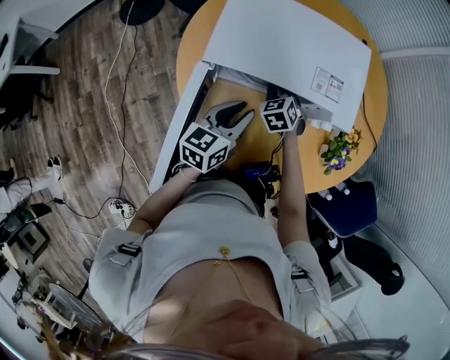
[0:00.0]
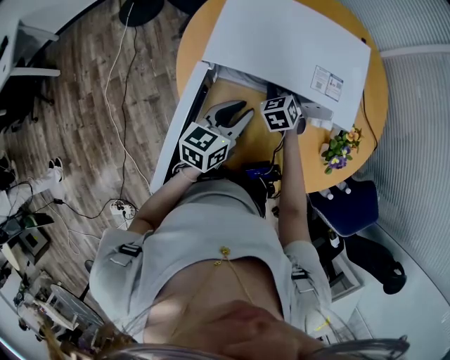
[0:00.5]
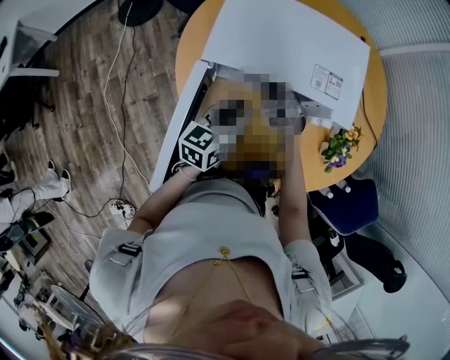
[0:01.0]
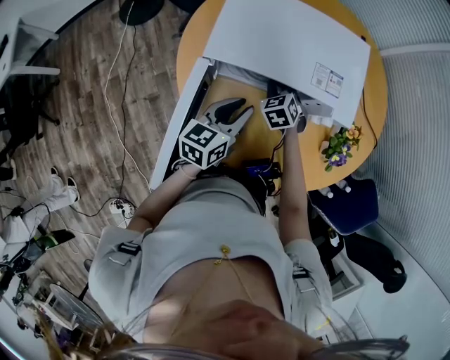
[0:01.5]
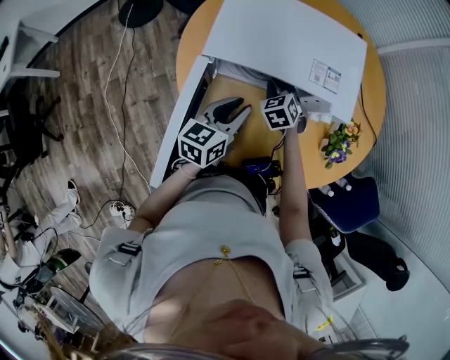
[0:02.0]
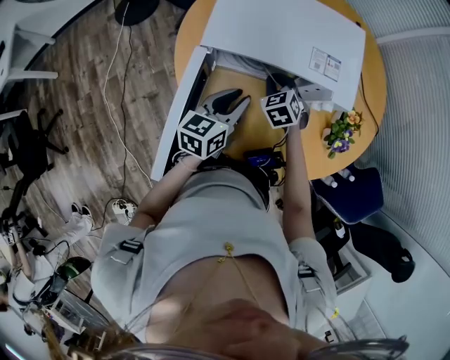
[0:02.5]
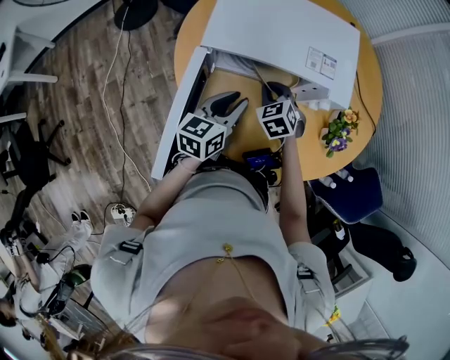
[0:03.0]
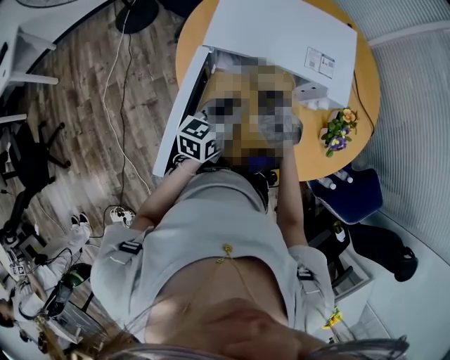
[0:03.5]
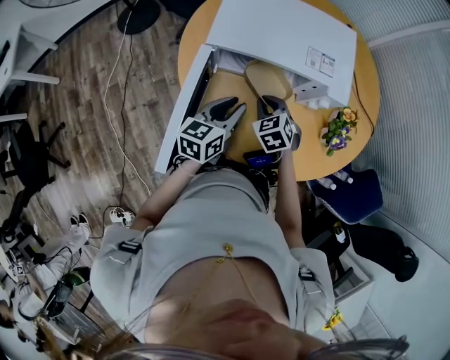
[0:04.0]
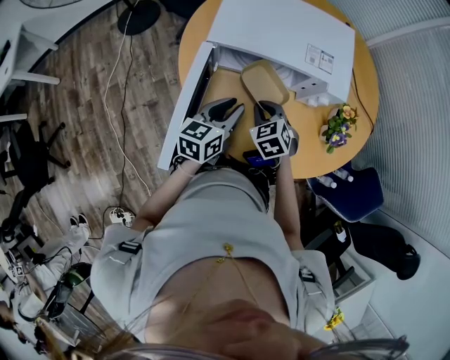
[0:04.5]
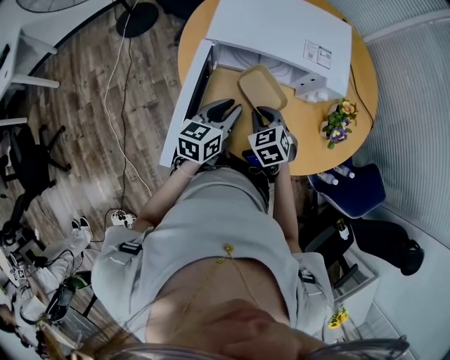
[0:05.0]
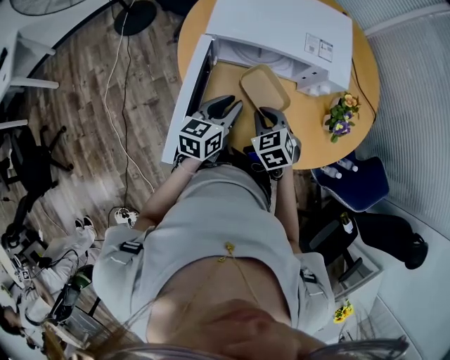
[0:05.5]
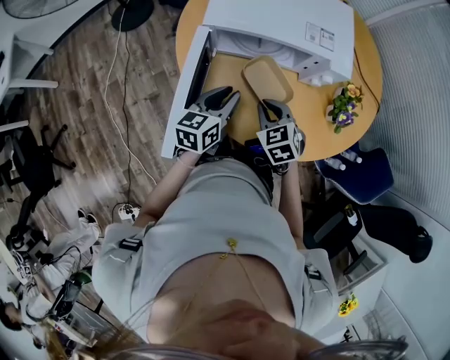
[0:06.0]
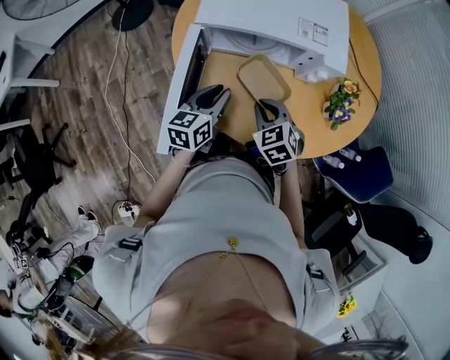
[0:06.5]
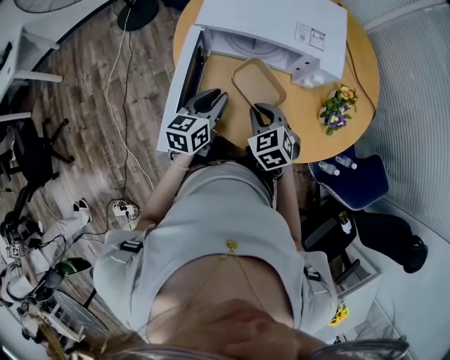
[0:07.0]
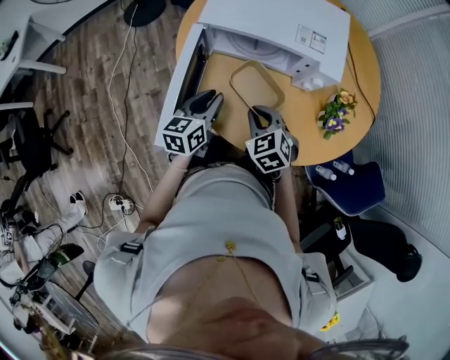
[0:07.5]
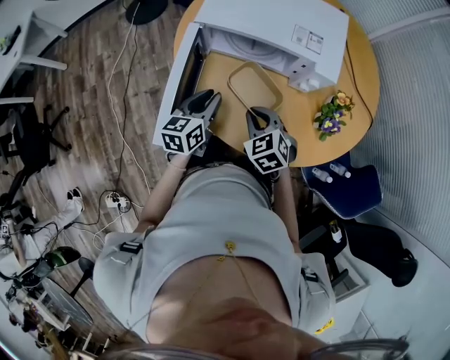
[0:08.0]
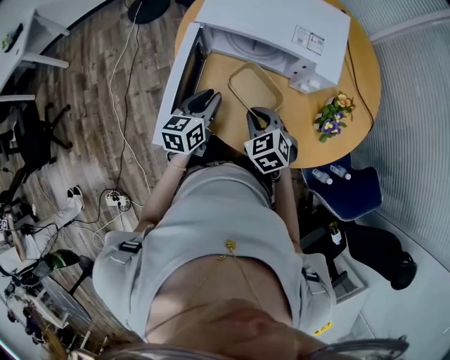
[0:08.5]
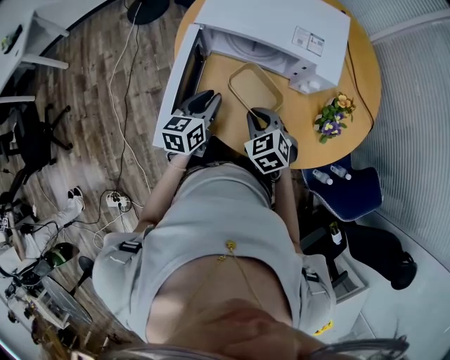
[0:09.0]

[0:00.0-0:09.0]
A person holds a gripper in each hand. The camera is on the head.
0:00.0 to 0:02.0: The grippers make only small movements.
0:02.0 to 0:04.5: The right gripper is displaced backward by roughly 15 cm, while the left gripper is displaced backward by approximately 5 cm.
0:04.5 to 0:07.0: The right gripper is displaced backward by some 5 cm.
0:07.0 to 0:09.0: The grippers make only small movements.

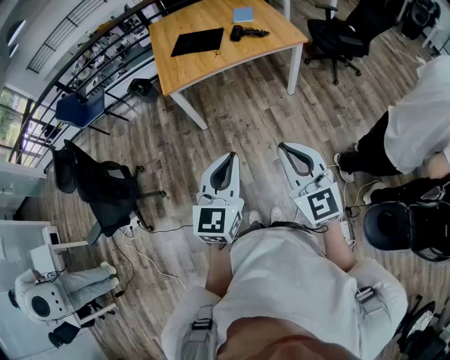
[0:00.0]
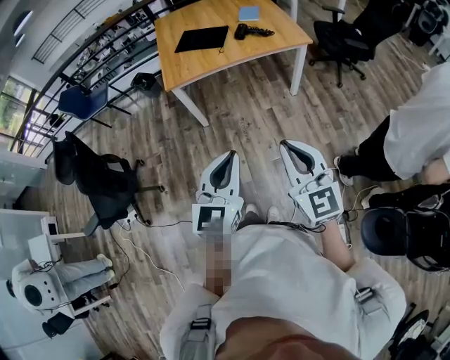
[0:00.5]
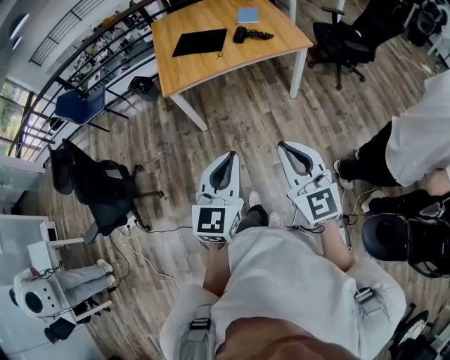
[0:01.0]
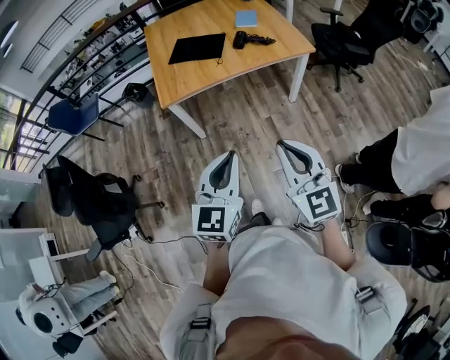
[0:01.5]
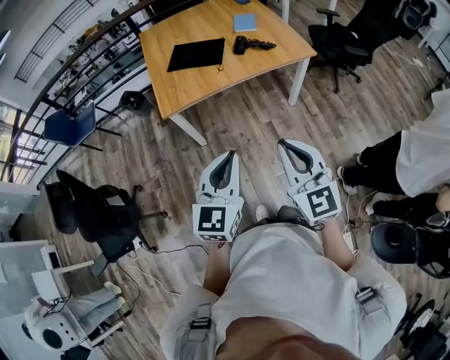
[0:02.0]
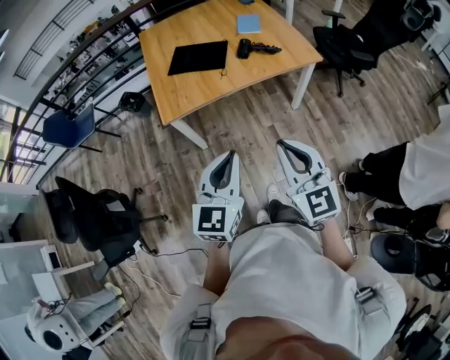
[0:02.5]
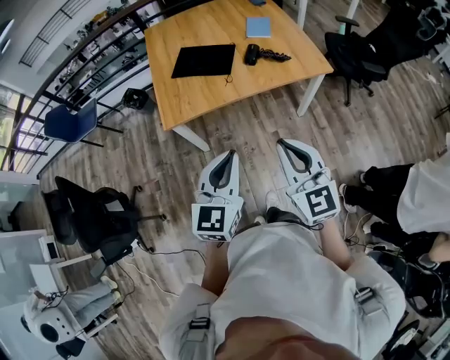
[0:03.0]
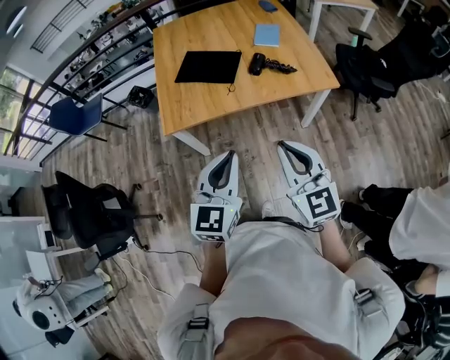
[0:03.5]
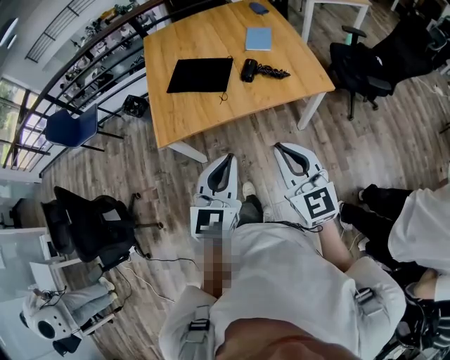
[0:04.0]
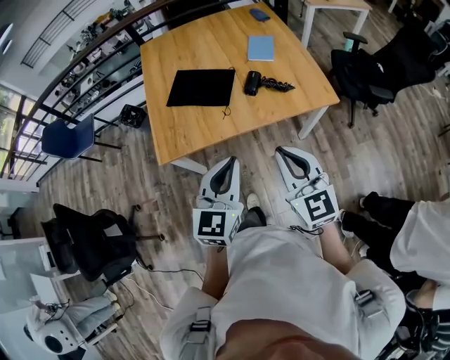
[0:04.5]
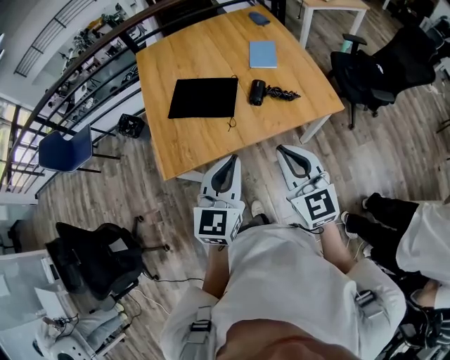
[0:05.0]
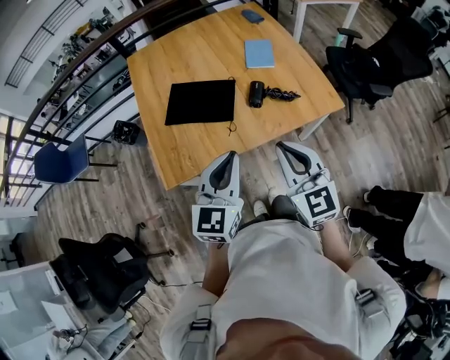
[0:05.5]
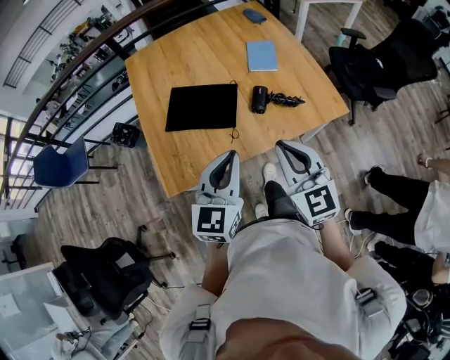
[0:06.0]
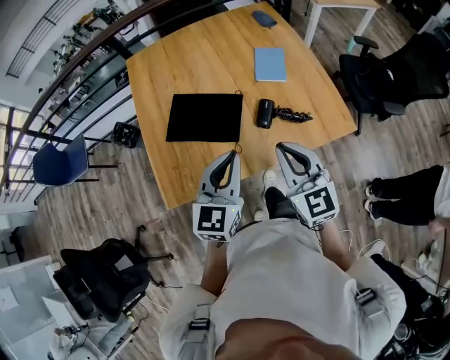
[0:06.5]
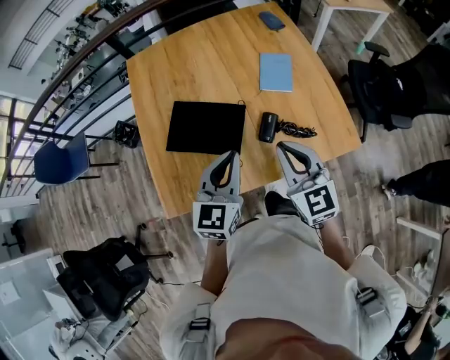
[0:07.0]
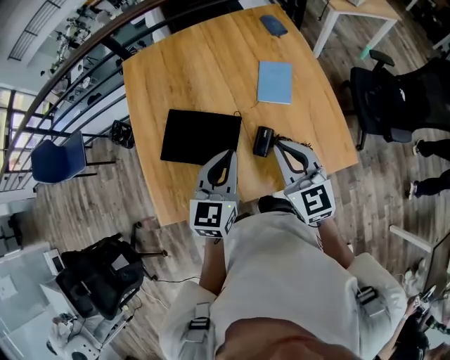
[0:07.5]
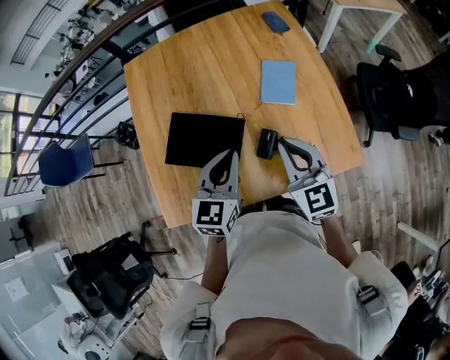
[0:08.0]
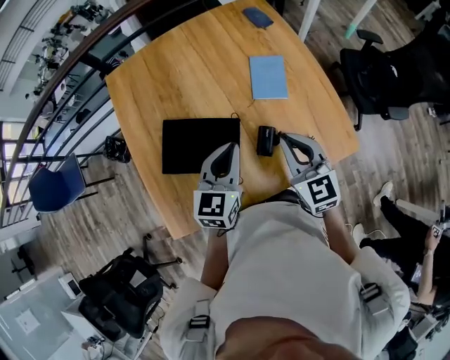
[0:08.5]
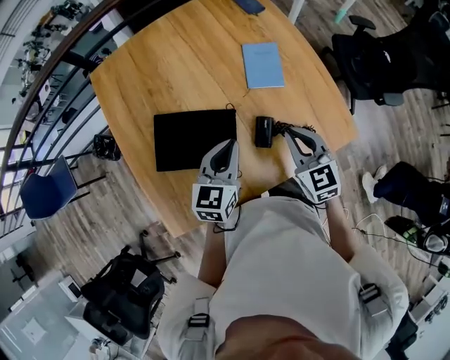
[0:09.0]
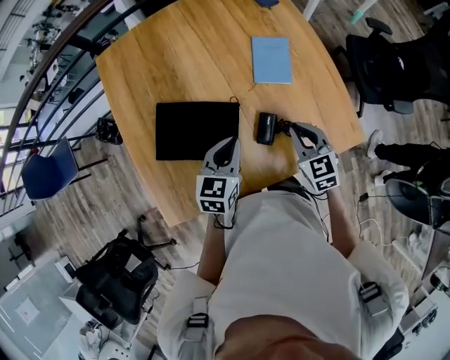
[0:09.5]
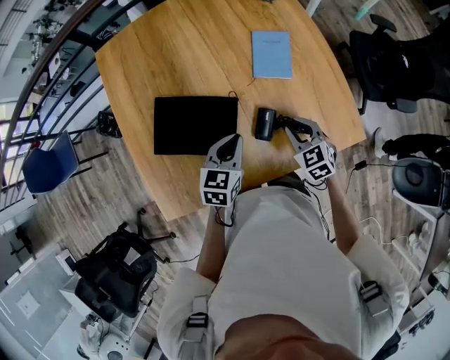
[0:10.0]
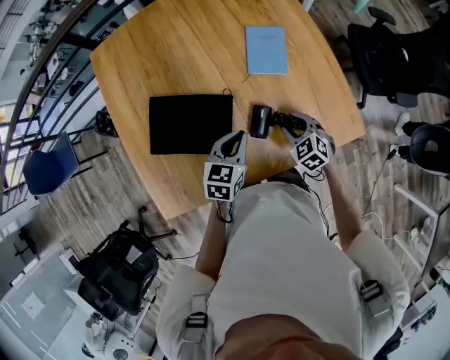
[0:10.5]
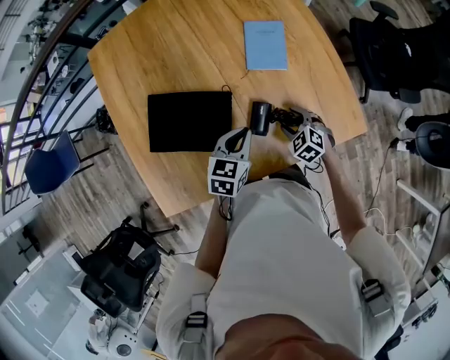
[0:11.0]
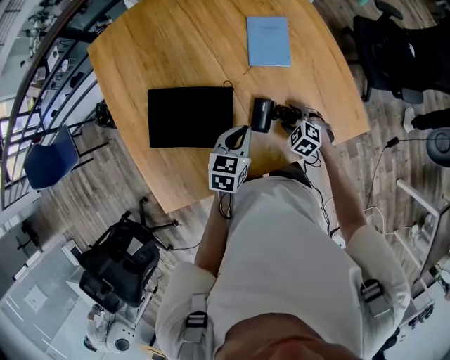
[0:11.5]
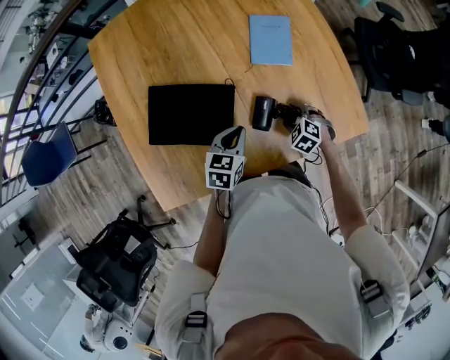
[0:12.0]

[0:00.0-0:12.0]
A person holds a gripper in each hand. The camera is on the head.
0:00.0 to 0:02.0: The grippers both shift forward by approximately 20 cm.
0:02.0 to 0:04.0: The two grippers go roughly 25 cm forward.
0:04.0 to 0:06.0: The two grippers go approximately 25 cm forward.
0:06.0 to 0:08.0: Both grippers travel together forward, about 25 cm.
0:08.0 to 0:10.0: The grippers both shift downward by some 15 cm. The right gripper swivels roughly 30 degrees.
0:10.0 to 0:12.0: The right gripper goes approximately 15 cm downward, rotates some 30 degrees, and opens up. Meanwhile the left gripper travels downward by approximately 5 cm.

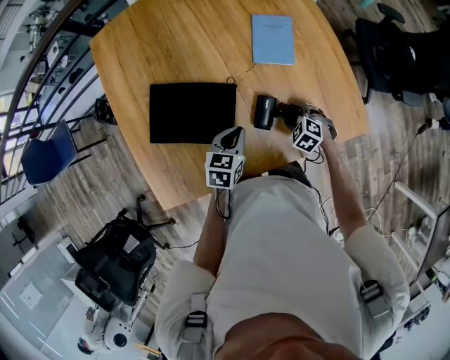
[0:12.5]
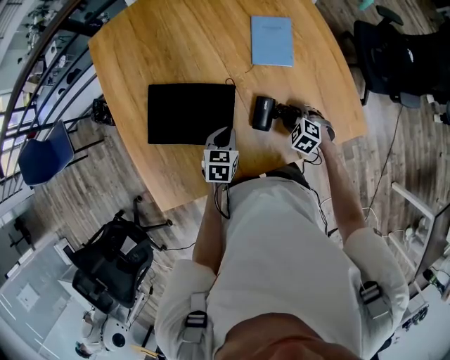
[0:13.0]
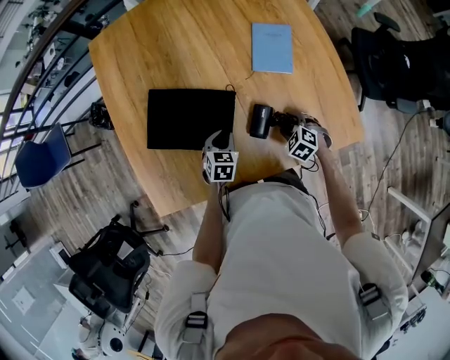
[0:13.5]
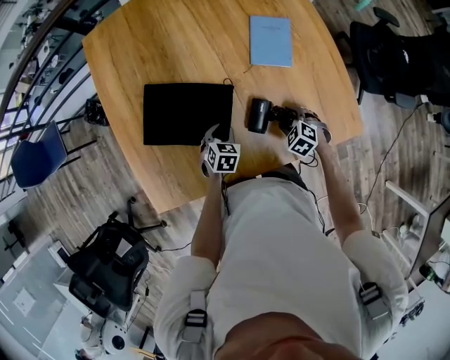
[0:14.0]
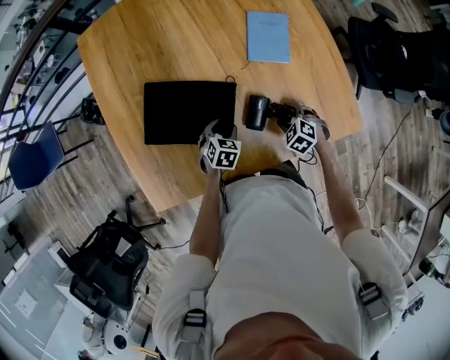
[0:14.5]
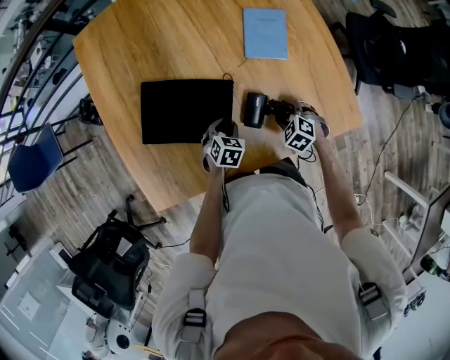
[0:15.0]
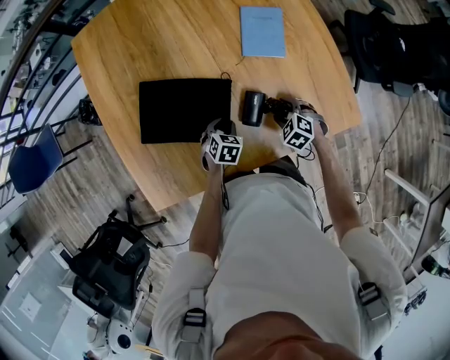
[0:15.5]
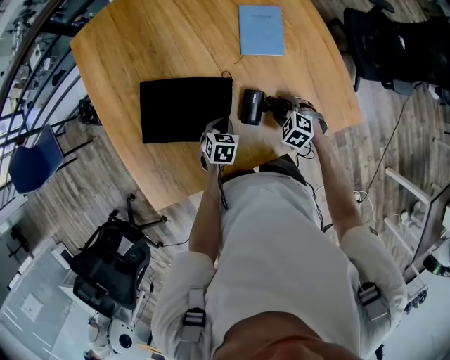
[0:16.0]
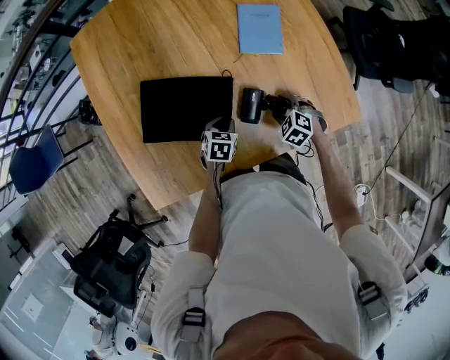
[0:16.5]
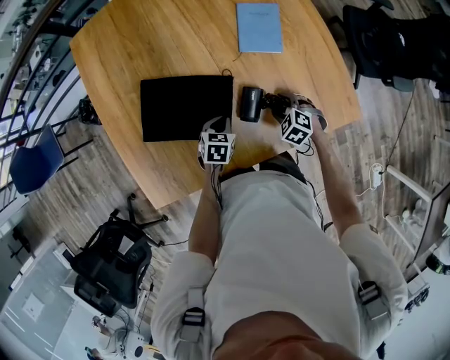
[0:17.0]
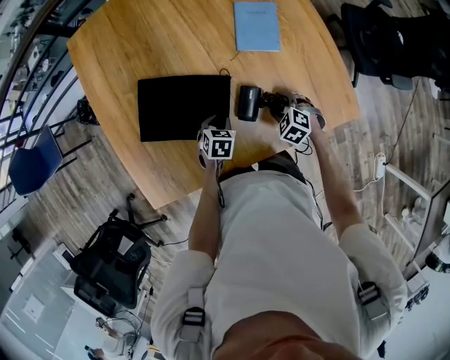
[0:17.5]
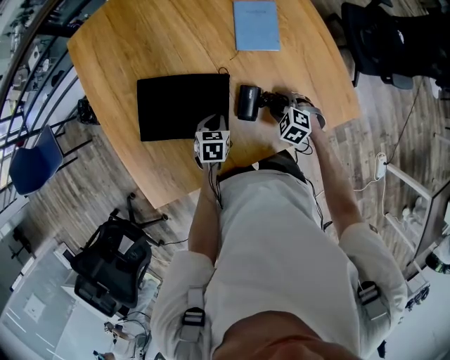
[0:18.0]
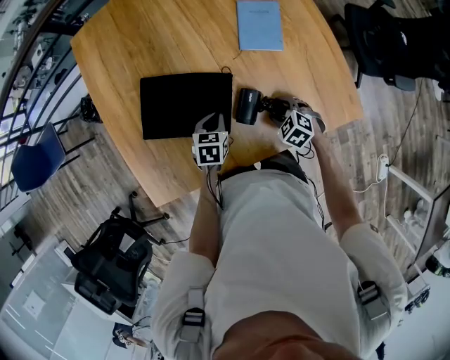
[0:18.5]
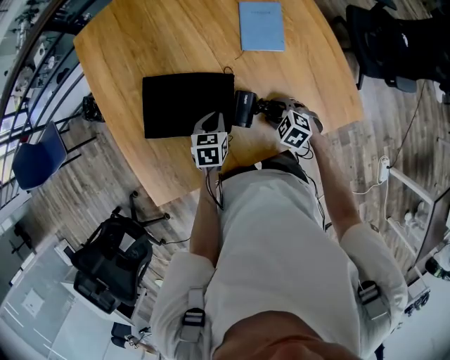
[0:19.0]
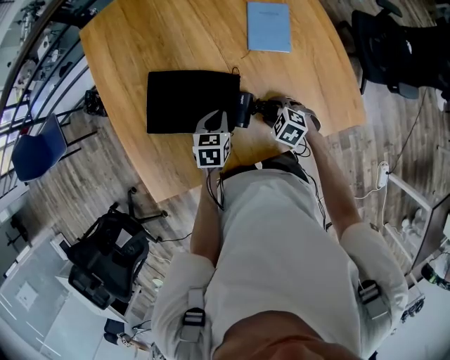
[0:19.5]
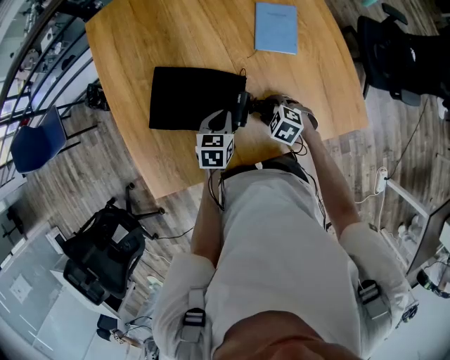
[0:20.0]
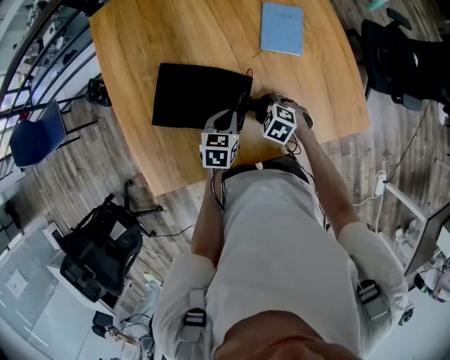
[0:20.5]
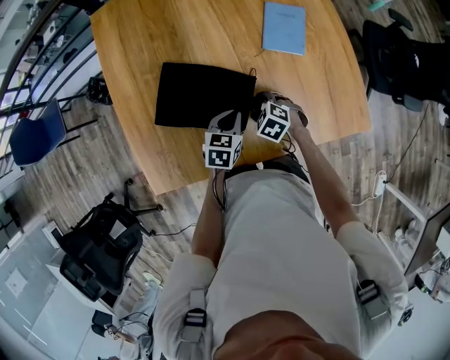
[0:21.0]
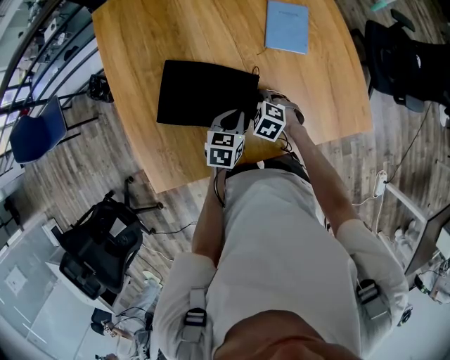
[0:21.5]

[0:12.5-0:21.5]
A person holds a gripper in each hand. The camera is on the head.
0:12.5 to 0:14.5: The left gripper travels downward by about 10 cm, and opens.
0:14.5 to 0:17.0: The left gripper closes.
0:17.0 to 0:19.5: The right gripper shifts approximately 5 cm to the left. The left gripper goes about 5 cm upward.
0:19.5 to 0:21.5: The right gripper is displaced to the left by approximately 10 cm.
